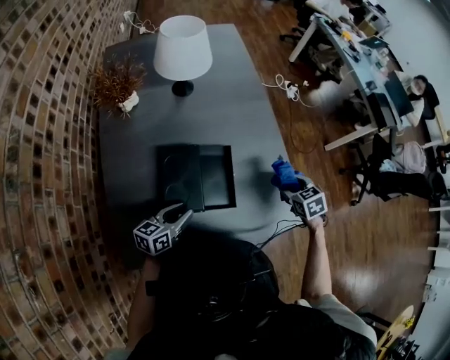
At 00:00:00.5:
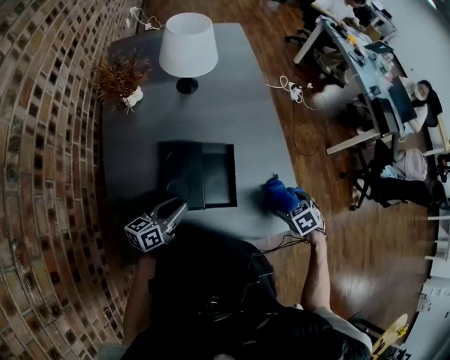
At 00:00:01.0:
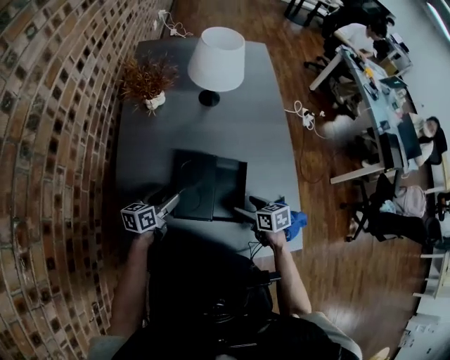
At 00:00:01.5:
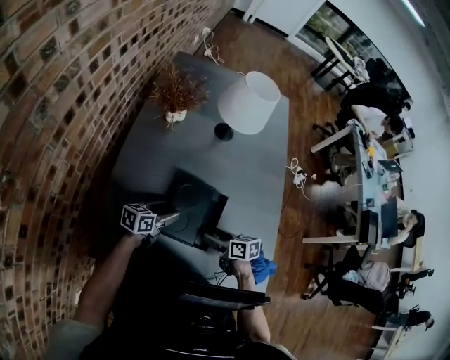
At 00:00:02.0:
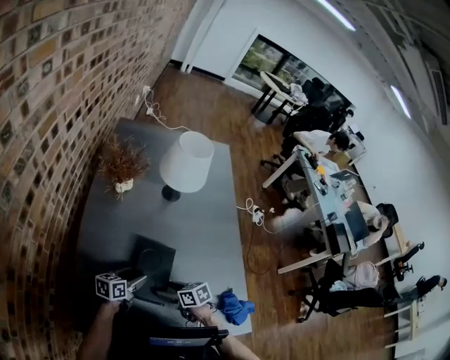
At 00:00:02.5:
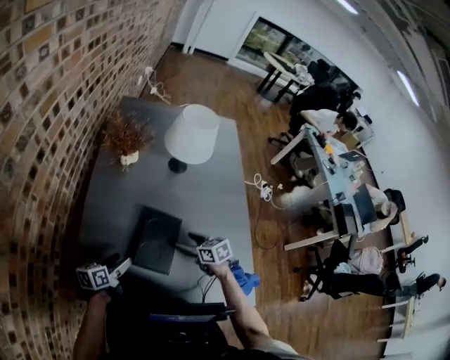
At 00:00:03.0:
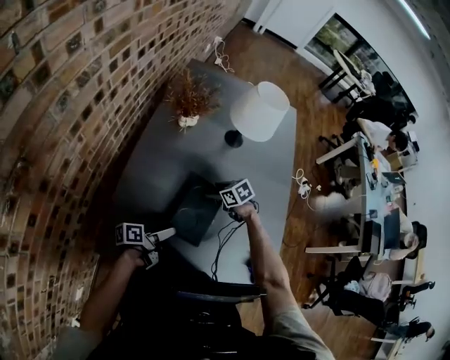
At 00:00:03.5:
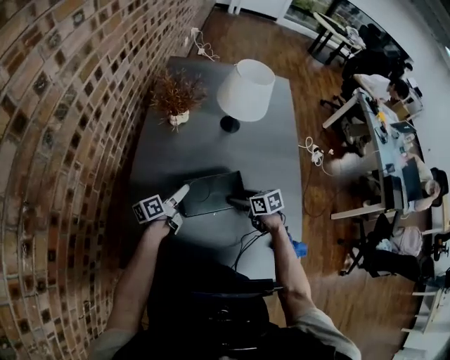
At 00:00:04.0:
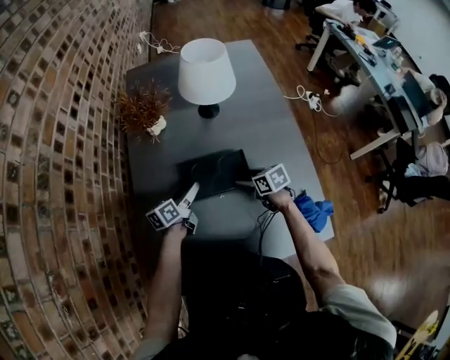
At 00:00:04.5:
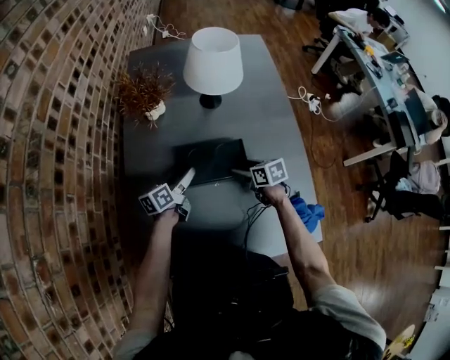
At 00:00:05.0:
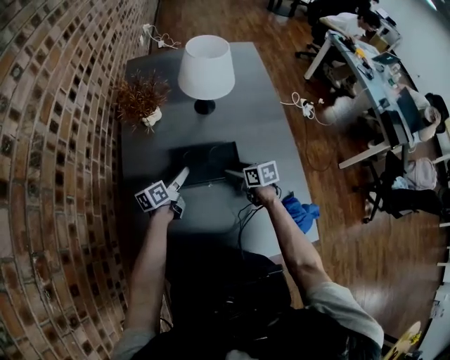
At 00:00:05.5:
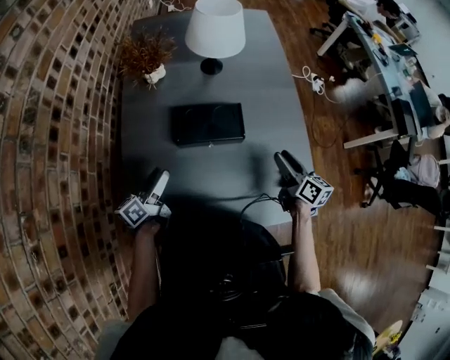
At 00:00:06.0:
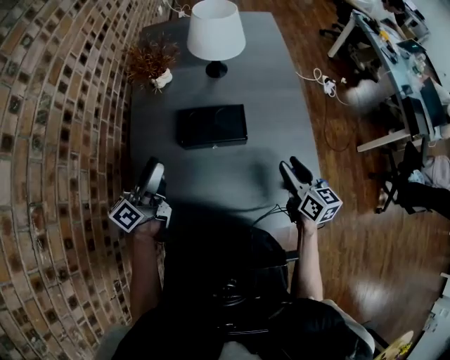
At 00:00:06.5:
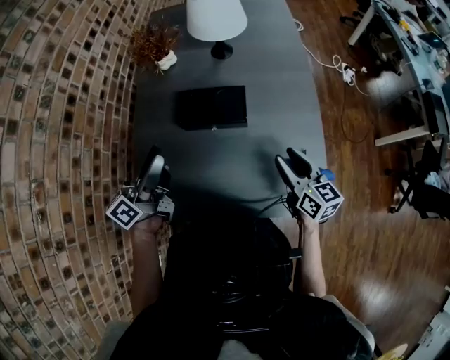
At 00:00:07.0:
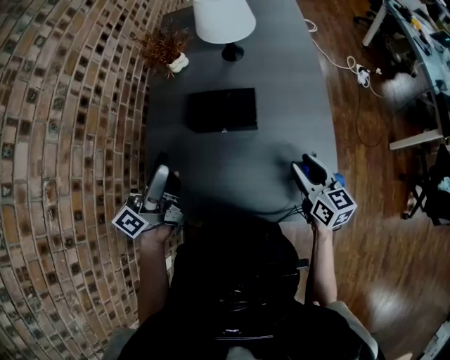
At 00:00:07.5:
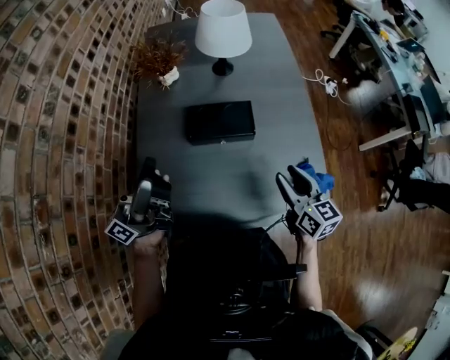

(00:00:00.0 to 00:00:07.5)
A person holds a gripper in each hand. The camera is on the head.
00:00:00.0 - 00:00:02.0: The right gripper moves approximately 35 cm, and rotates about 40 degrees, while the left gripper changes place by about 15 cm, and opens its fingers.
00:00:02.0 - 00:00:04.0: The right gripper heads to the right and forward, covering some 15 cm; the left gripper travels forward by approximately 10 cm.
00:00:04.0 - 00:00:05.5: The right gripper moves upward, to the right and backward, about 20 cm, and rotates about 40 degrees; the left gripper heads backward, to the left and upward, covering some 15 cm.
00:00:05.5 - 00:00:07.5: The left gripper goes some 25 cm upward, and angles its fingers upward, by some 40 degrees, while the right gripper is displaced backward, upward and to the left by approximately 15 cm.

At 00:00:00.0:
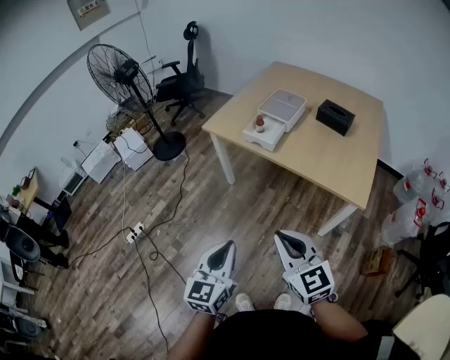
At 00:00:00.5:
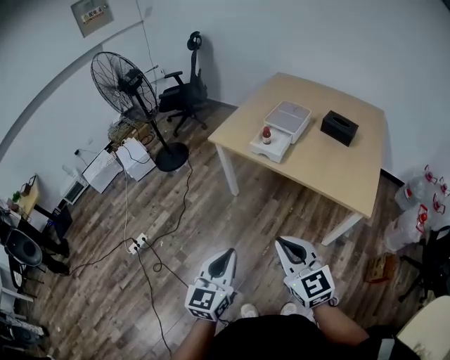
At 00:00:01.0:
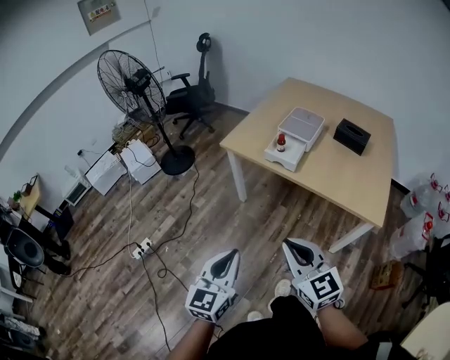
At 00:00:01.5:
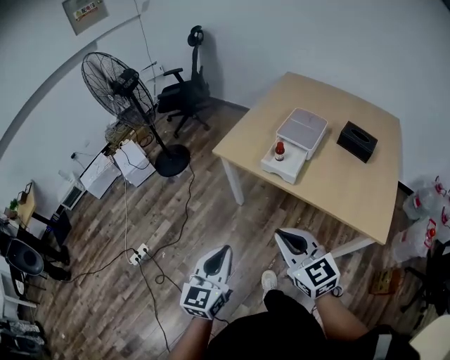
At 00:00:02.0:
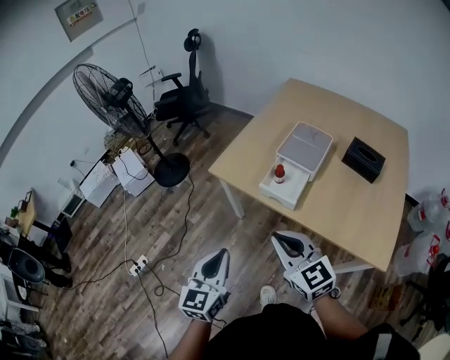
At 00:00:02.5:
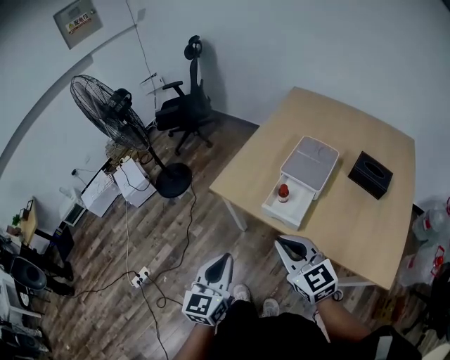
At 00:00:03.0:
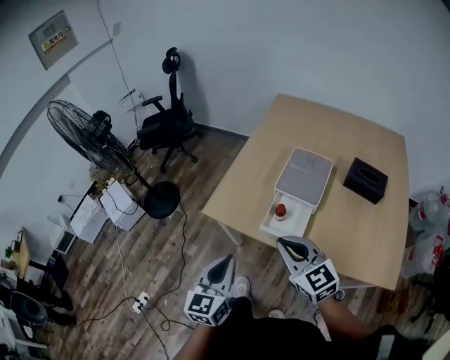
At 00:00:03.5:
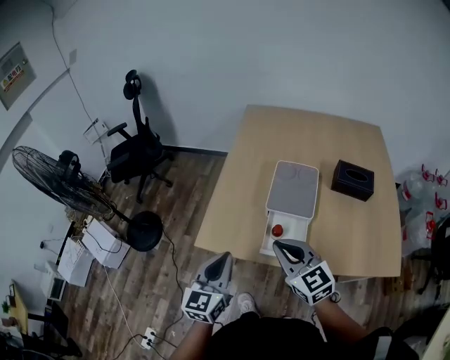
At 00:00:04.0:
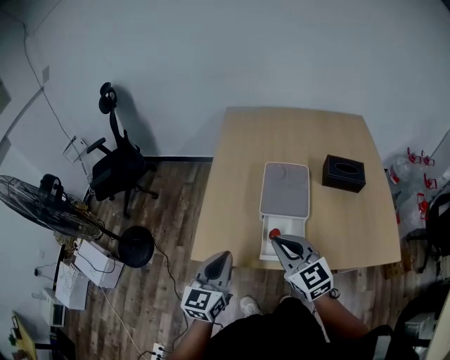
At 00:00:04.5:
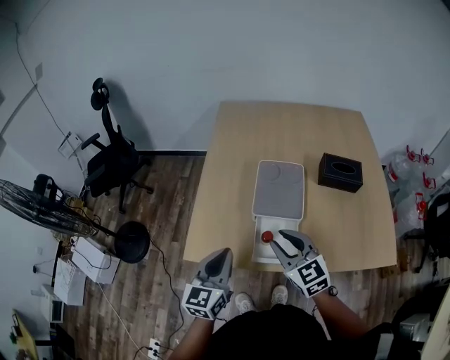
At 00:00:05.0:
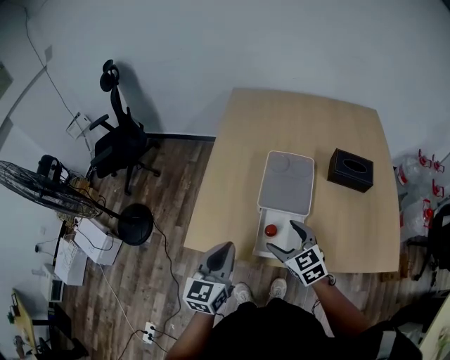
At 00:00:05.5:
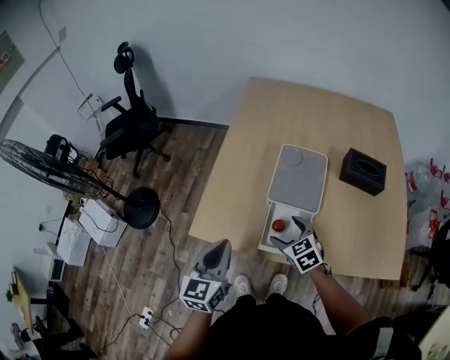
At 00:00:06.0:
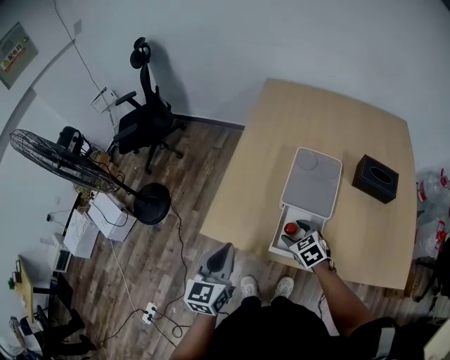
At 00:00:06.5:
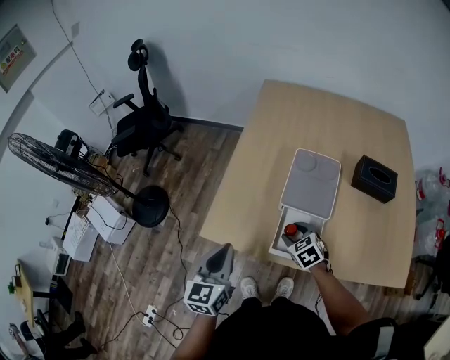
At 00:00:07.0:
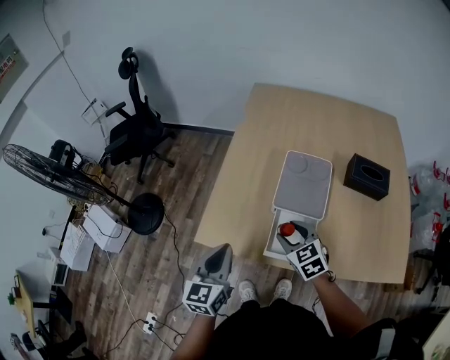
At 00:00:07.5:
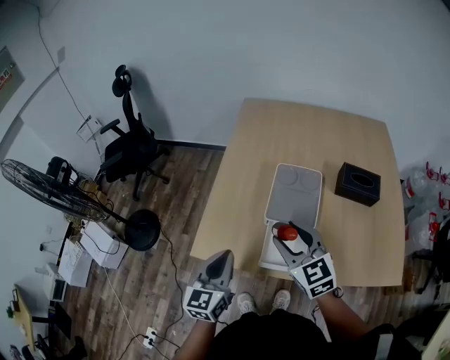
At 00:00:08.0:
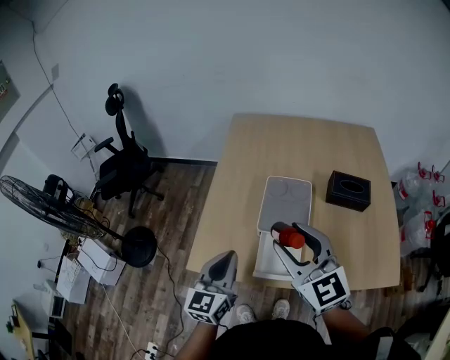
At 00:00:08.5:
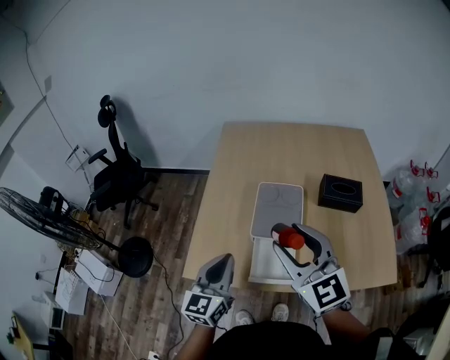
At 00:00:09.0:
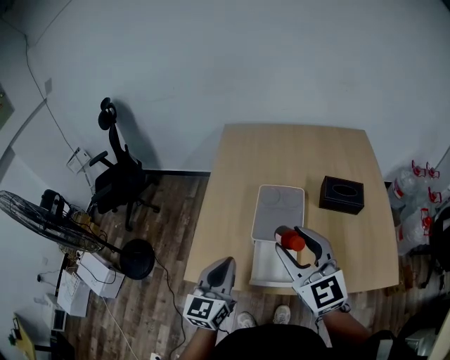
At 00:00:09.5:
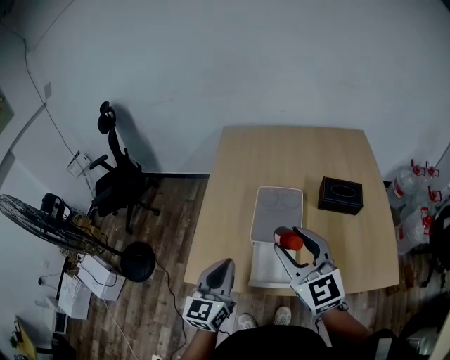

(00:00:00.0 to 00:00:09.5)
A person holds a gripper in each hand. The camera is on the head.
00:00:00.0 - 00:00:02.0: Both grippers travel together forward, approximately 30 cm.
00:00:02.0 - 00:00:04.0: The right gripper ends up approximately 25 cm from where it was, and changes its angle by about 30 degrees; the left gripper moves some 30 cm, and turns by about 30 degrees.
00:00:04.0 - 00:00:05.5: The right gripper heads downward, covering about 20 cm, changes its angle by some 30 degrees, and opens up.
00:00:05.5 - 00:00:07.5: The right gripper shifts approximately 20 cm upward, swivels roughly 20 degrees, and closes.
00:00:07.5 - 00:00:09.5: The right gripper moves upward and to the right, about 10 cm. The left gripper travels to the right by about 5 cm.

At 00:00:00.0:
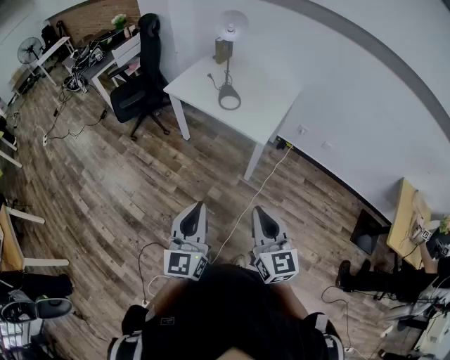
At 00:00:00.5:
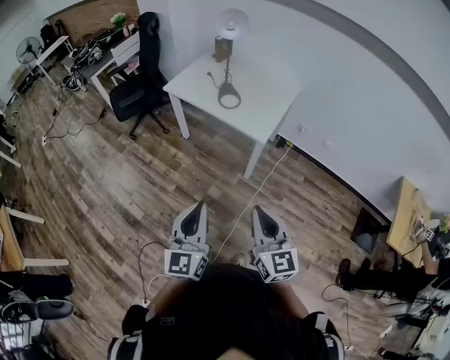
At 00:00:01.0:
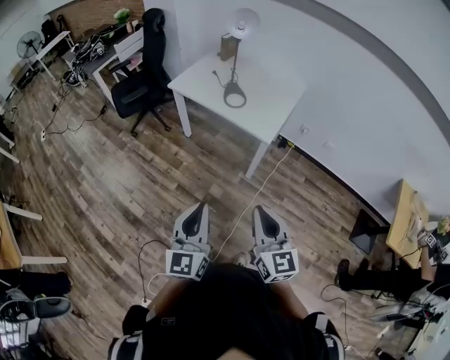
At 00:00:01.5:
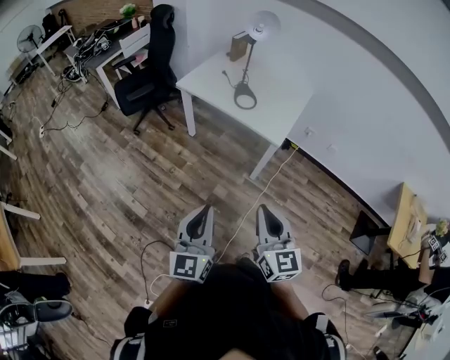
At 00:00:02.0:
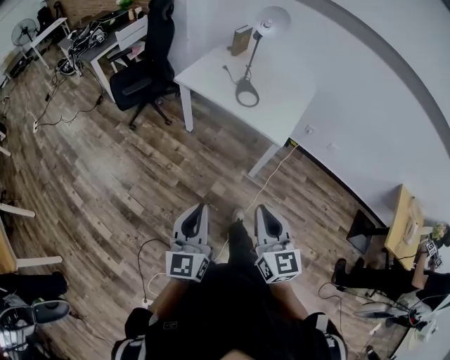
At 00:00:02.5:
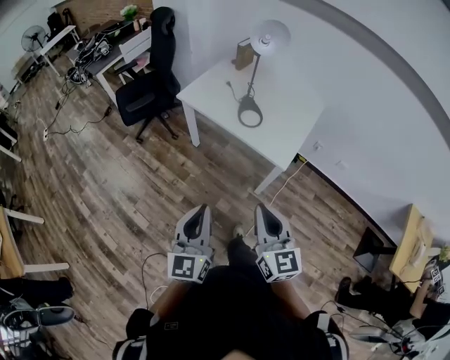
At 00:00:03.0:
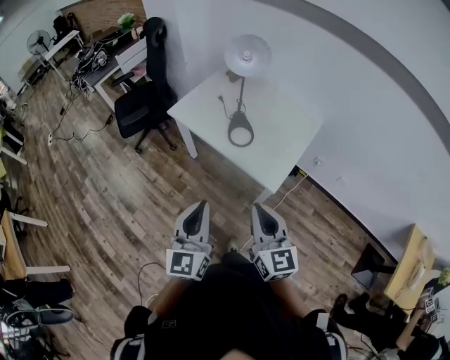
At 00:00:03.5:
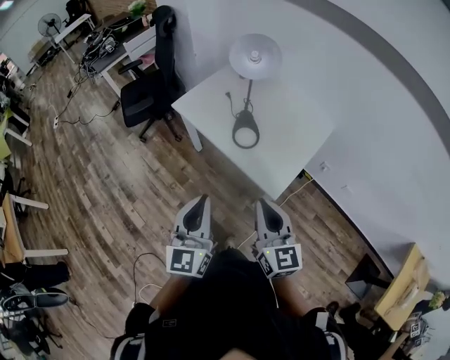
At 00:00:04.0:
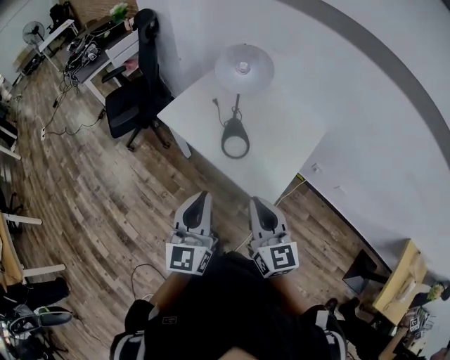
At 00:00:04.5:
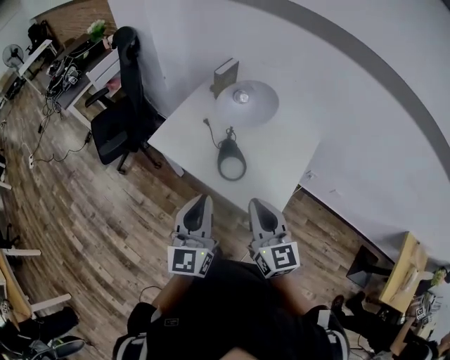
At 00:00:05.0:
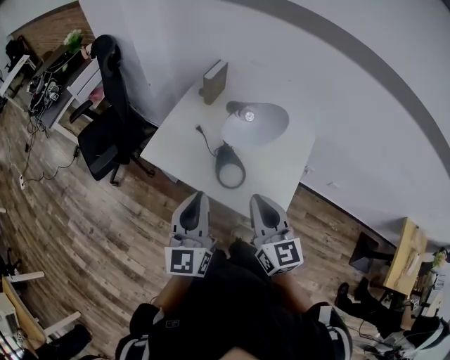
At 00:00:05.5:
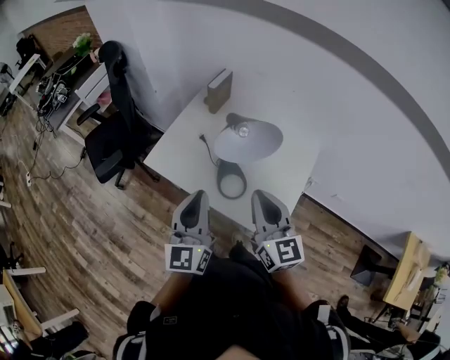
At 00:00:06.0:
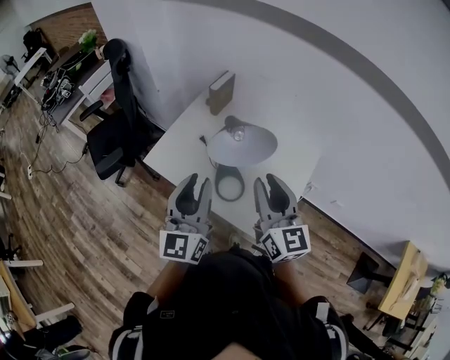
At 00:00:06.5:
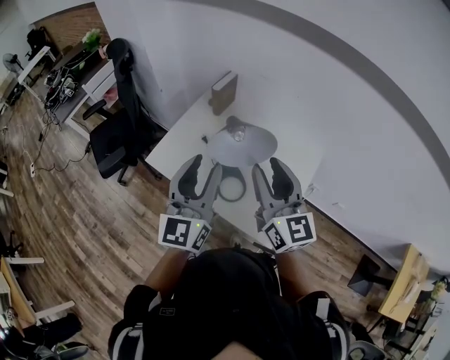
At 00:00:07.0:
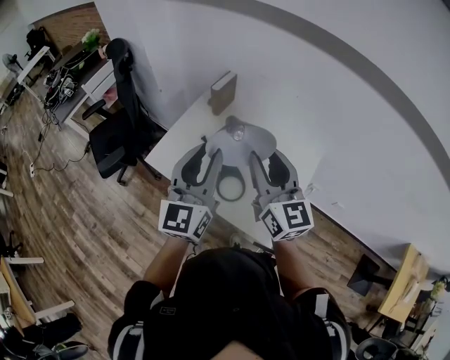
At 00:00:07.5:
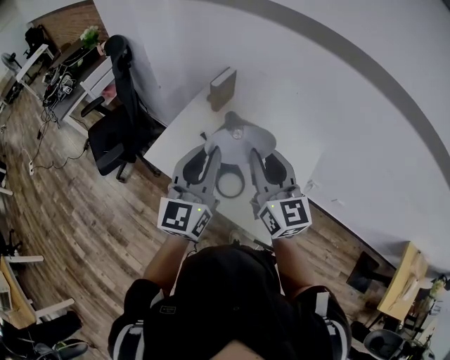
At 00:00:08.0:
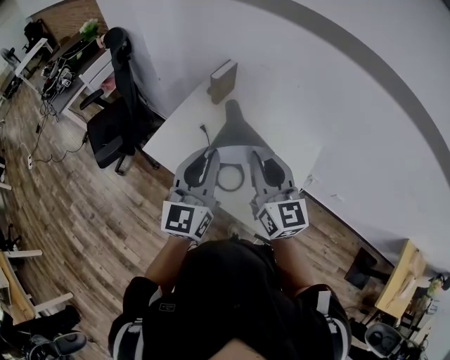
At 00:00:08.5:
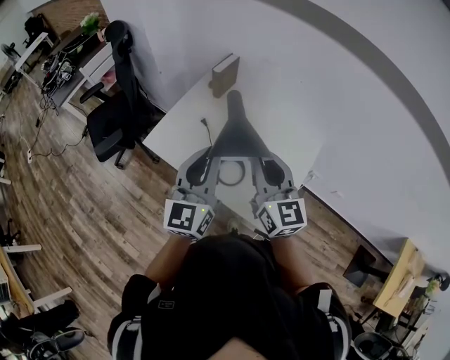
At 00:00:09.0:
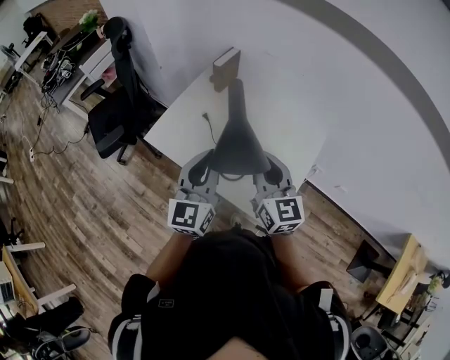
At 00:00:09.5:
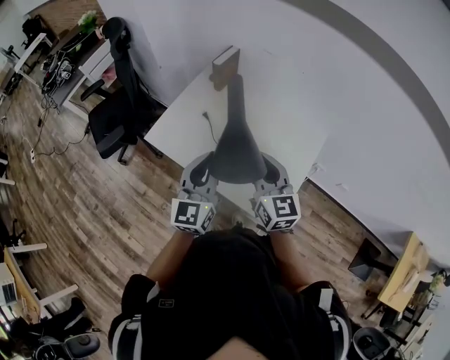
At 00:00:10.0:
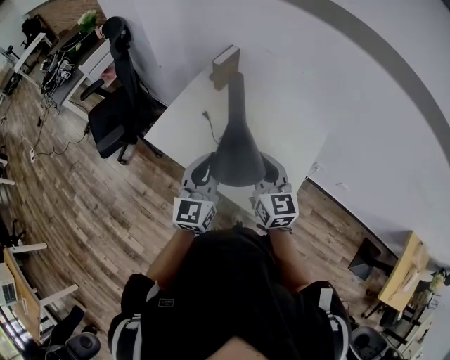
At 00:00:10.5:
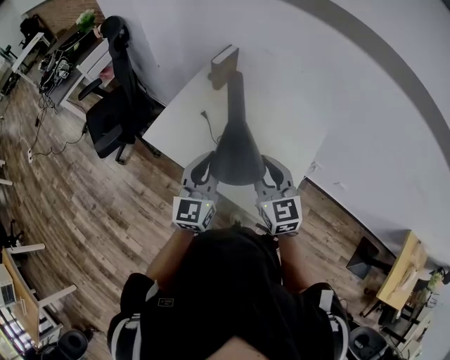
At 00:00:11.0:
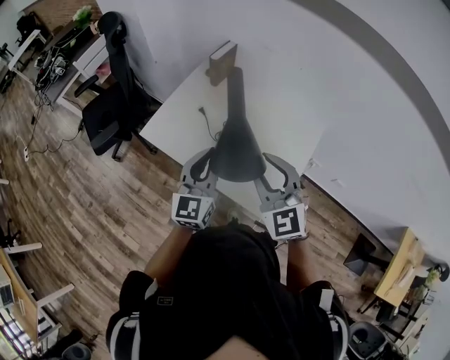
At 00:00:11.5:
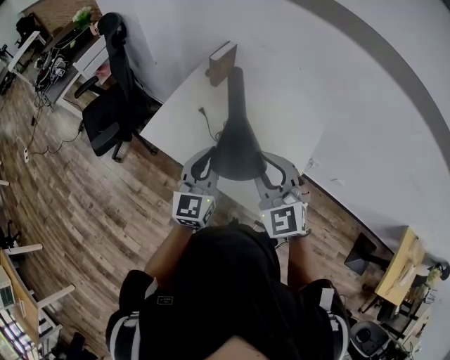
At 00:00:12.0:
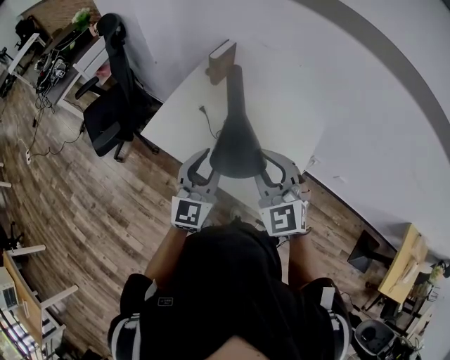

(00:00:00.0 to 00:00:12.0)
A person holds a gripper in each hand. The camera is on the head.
00:00:00.0 - 00:00:02.0: The left gripper shifts roughly 10 cm to the left, while the right gripper shifts about 15 cm to the left and forward.
00:00:02.0 - 00:00:04.0: The two grippers travel together, forward and to the right, some 40 cm.
00:00:04.0 - 00:00:06.0: The two grippers go approximately 25 cm forward. The right gripper opens.
00:00:08.0 - 00:00:10.0: The grippers both shift downward by approximately 10 cm.
00:00:10.0 - 00:00:12.0: The left gripper opens; the right gripper goes roughly 5 cm upward, and swivels about 40 degrees.
